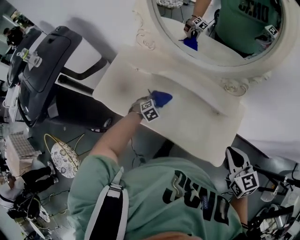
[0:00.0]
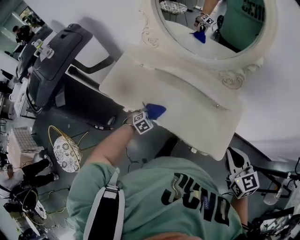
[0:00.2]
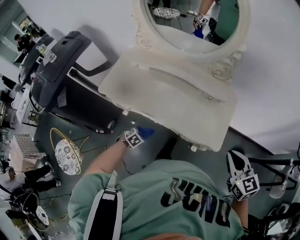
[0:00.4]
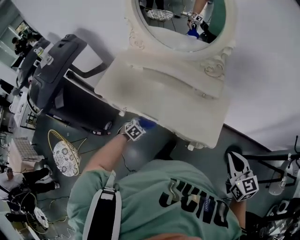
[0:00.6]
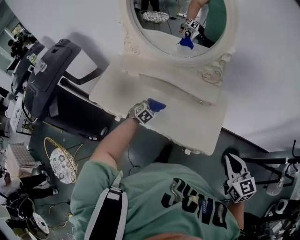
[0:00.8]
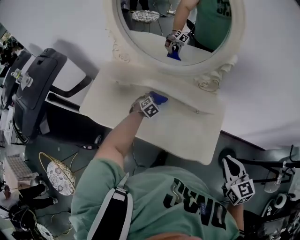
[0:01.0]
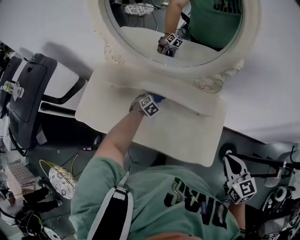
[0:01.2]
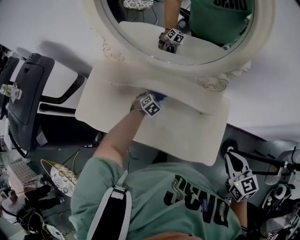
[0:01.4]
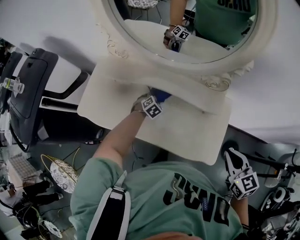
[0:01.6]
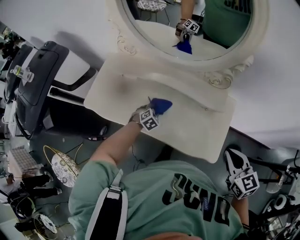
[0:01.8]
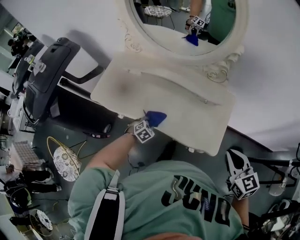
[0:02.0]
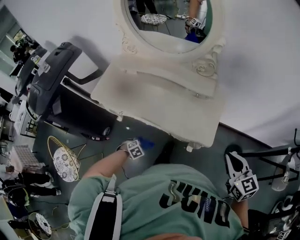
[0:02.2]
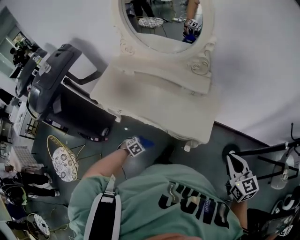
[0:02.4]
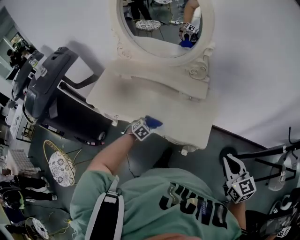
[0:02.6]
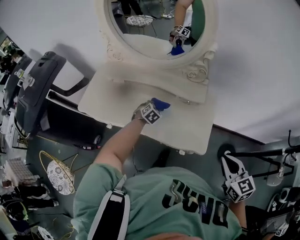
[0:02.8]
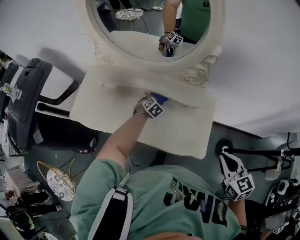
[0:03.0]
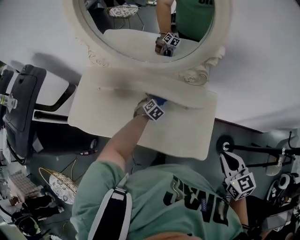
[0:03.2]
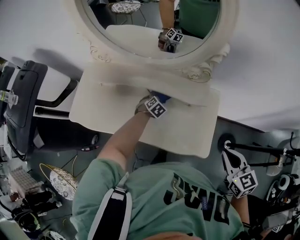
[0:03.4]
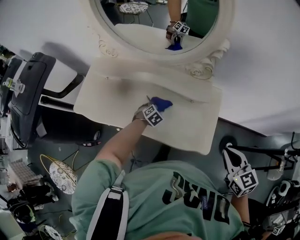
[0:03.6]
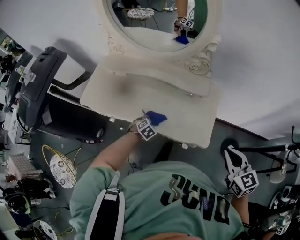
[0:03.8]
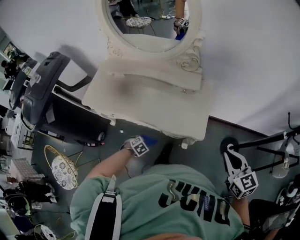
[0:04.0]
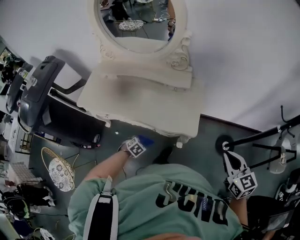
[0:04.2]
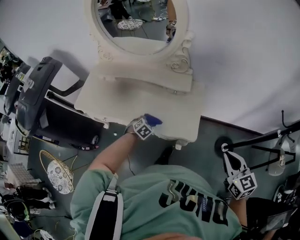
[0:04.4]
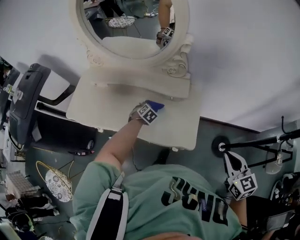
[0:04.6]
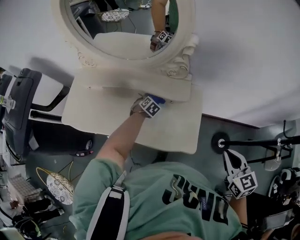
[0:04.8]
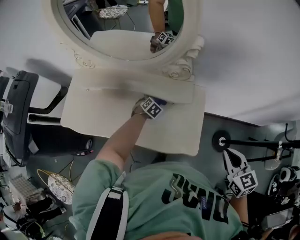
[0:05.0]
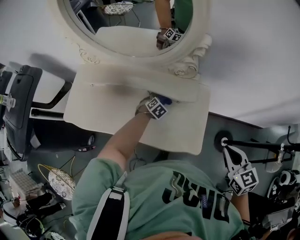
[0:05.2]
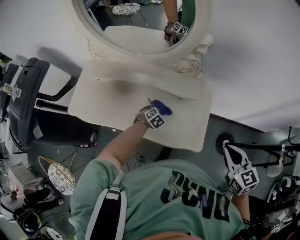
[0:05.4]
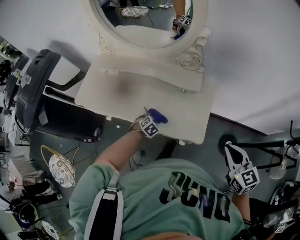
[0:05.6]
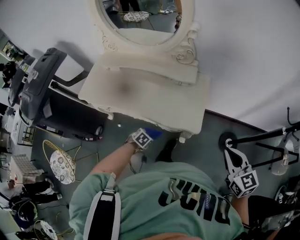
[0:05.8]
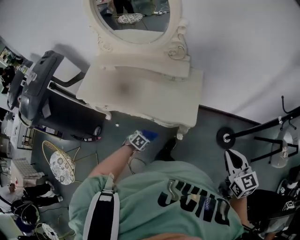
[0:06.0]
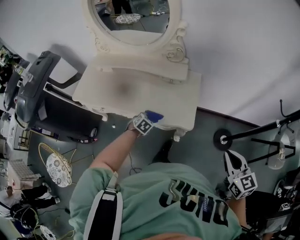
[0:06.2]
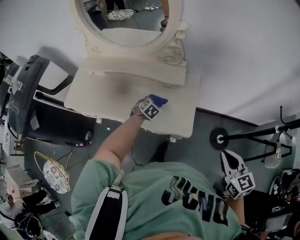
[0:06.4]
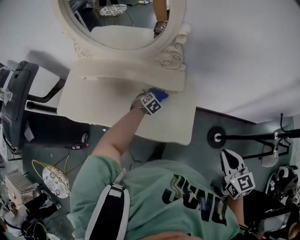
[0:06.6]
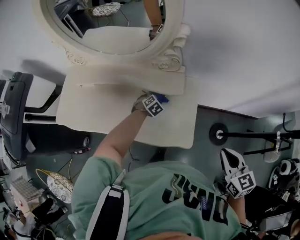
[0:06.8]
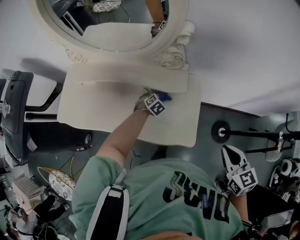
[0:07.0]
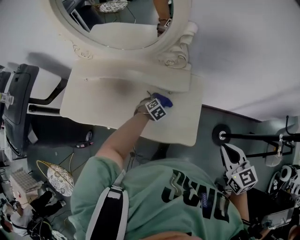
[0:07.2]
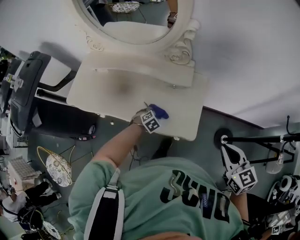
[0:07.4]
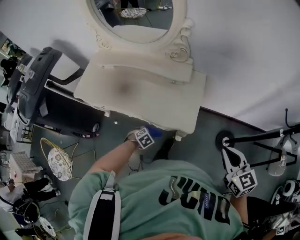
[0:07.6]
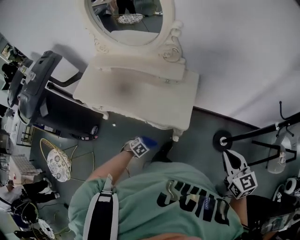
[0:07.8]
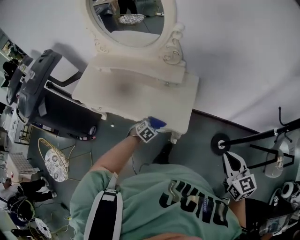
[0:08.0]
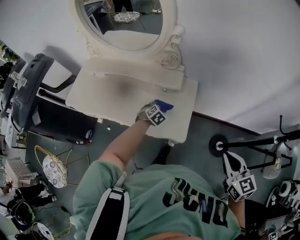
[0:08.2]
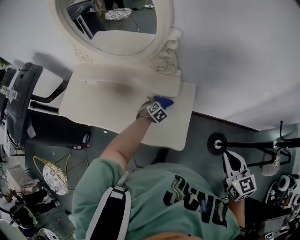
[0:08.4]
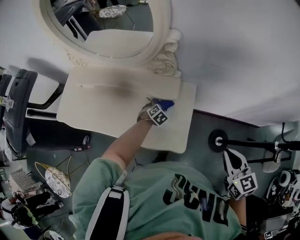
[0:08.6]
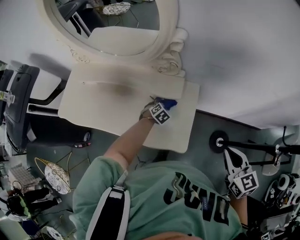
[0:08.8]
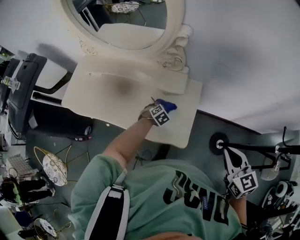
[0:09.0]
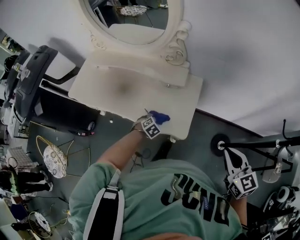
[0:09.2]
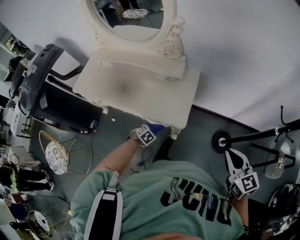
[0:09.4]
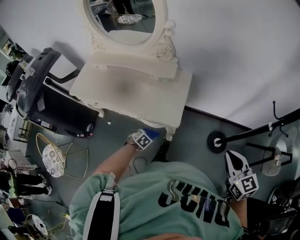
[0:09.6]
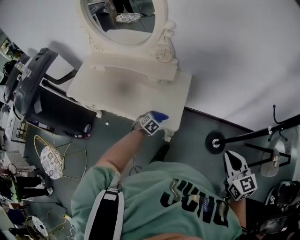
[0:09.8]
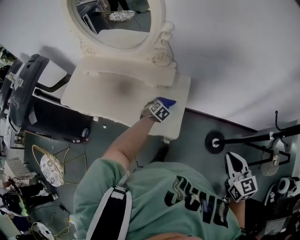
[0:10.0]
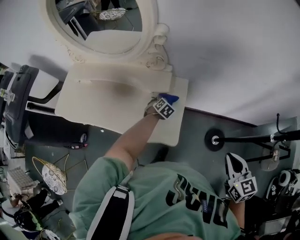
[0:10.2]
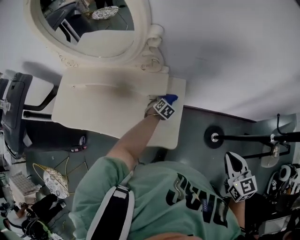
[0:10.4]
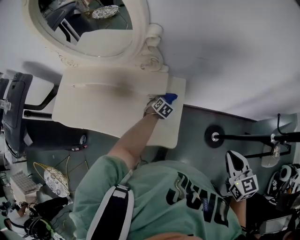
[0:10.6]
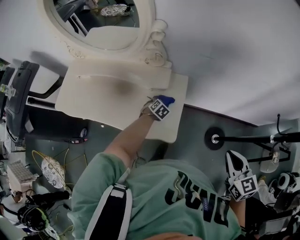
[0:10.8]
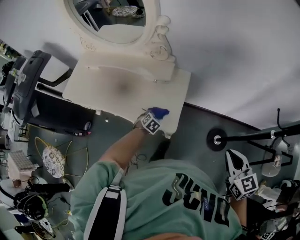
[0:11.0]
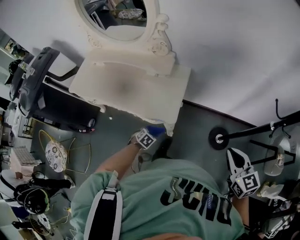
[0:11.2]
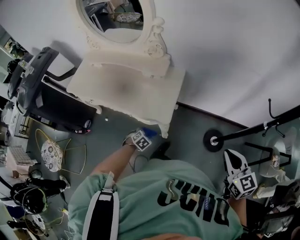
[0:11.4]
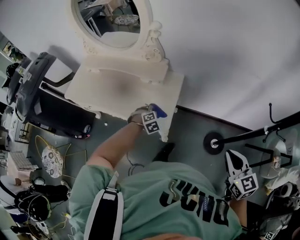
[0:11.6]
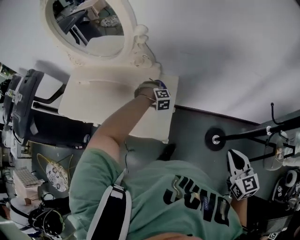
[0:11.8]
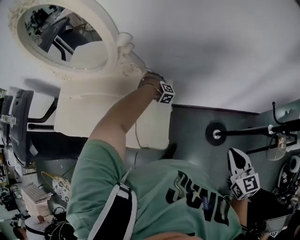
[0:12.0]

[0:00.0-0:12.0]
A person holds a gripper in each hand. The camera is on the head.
0:00.0 to 0:01.6: The left gripper reaches roughly 5 cm upward, then returns.
0:01.6 to 0:03.0: The left gripper goes upward and returns, about 5 cm each way.
0:03.0 to 0:04.4: The right gripper changes place by some 20 cm.
0:04.4 to 0:06.0: The left gripper moves some 20 cm.
0:07.6 to 0:09.0: The right gripper moves roughly 15 cm, while the left gripper changes place by approximately 30 cm.
0:10.4 to 0:12.0: The left gripper twists about 70 degrees clockwise, seen from behind.

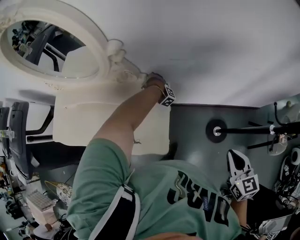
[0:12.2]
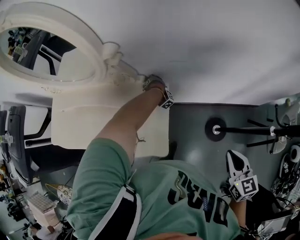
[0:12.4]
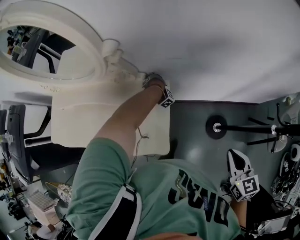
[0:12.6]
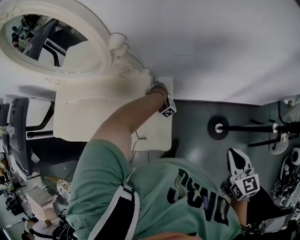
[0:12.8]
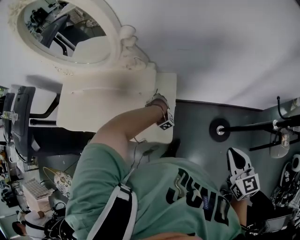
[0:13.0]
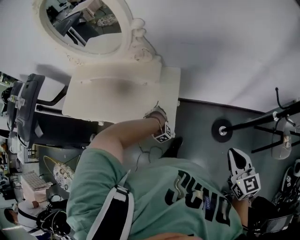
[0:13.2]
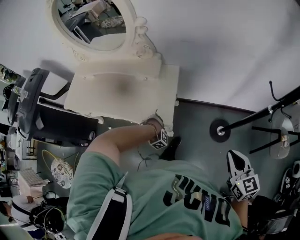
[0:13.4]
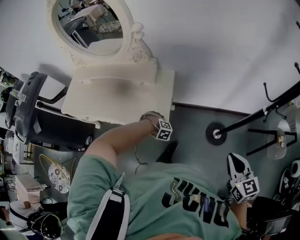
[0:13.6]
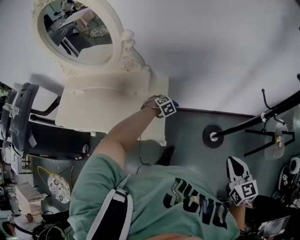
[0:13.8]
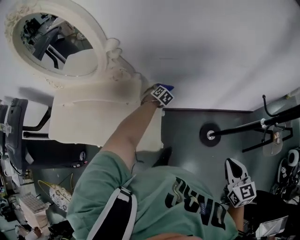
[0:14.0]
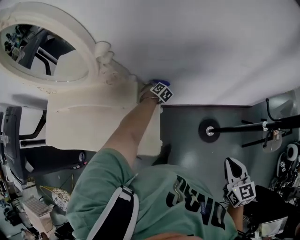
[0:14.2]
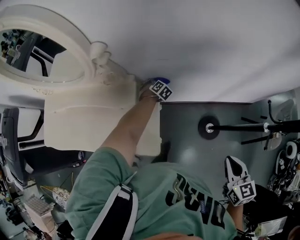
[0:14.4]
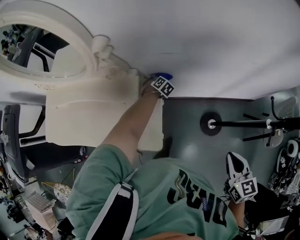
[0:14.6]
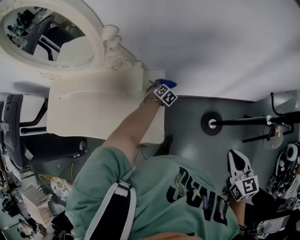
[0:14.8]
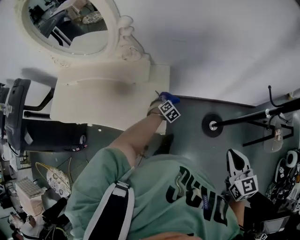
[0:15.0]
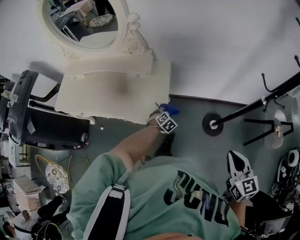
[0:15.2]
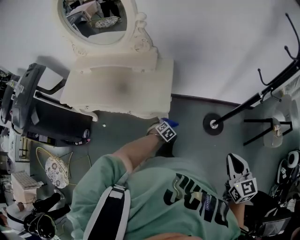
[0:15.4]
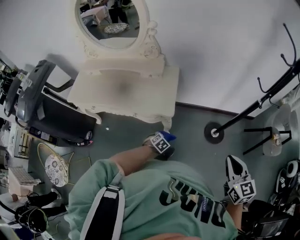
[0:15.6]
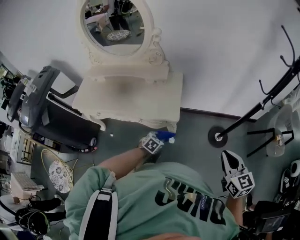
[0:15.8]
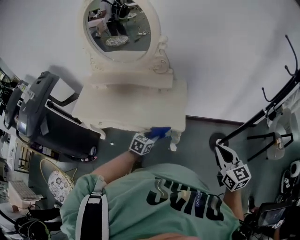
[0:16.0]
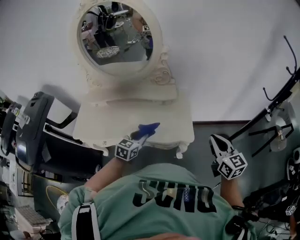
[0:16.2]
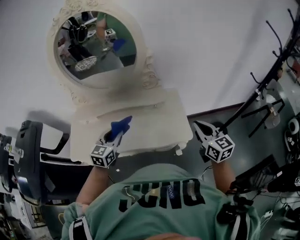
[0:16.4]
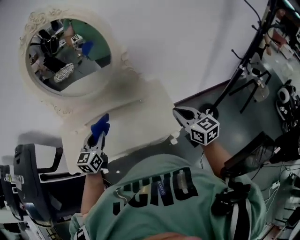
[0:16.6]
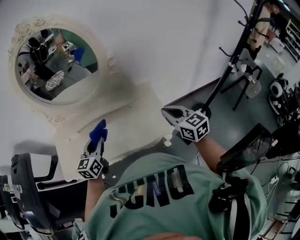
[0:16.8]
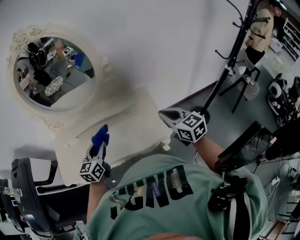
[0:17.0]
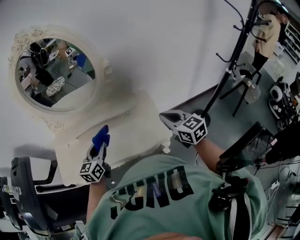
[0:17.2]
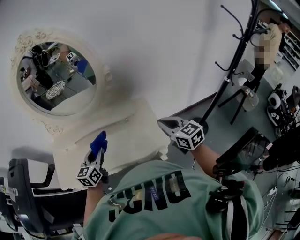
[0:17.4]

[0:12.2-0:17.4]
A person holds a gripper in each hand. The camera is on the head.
0:12.2 to 0:14.0: The left gripper rolls counterclockwise, seen from behind, by about 70 degrees.
0:14.0 to 0:15.6: The right gripper goes about 25 cm backward; the left gripper travels backward by approximately 50 cm.
0:15.6 to 0:17.4: The two grippers travel together, to the left and forward, approximately 50 cm. The left gripper goes some 30 cm upward, and angles its fingers upward, by approximately 50 degrees.

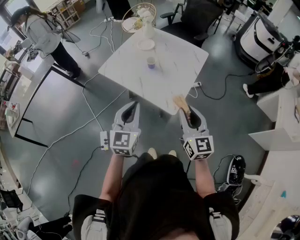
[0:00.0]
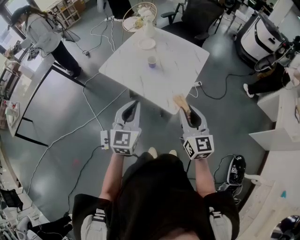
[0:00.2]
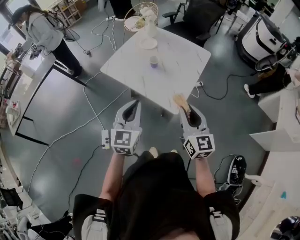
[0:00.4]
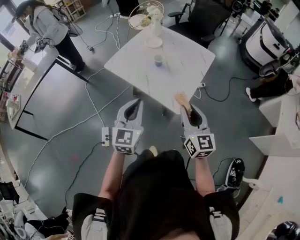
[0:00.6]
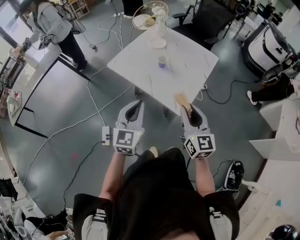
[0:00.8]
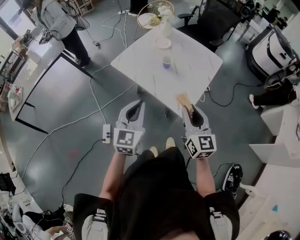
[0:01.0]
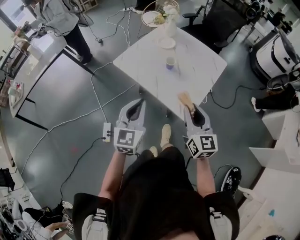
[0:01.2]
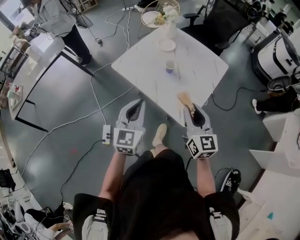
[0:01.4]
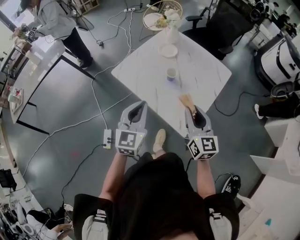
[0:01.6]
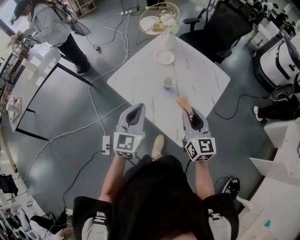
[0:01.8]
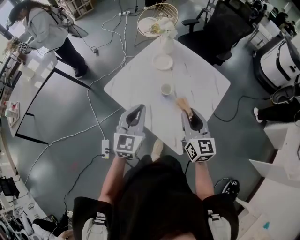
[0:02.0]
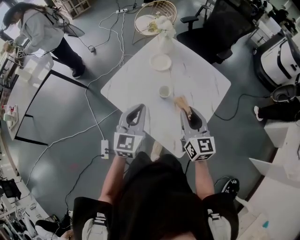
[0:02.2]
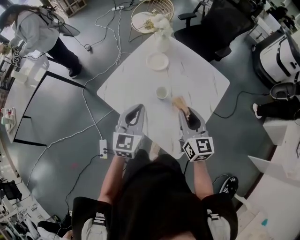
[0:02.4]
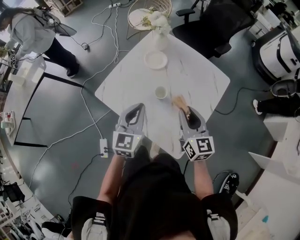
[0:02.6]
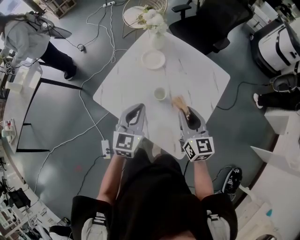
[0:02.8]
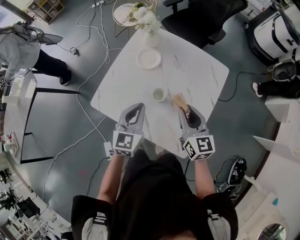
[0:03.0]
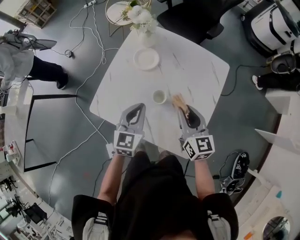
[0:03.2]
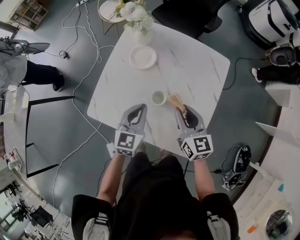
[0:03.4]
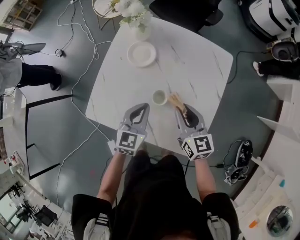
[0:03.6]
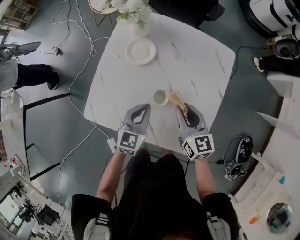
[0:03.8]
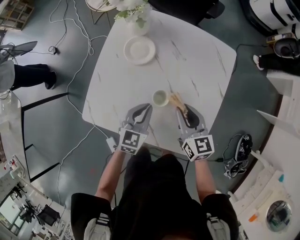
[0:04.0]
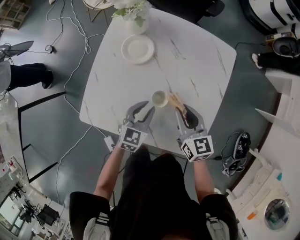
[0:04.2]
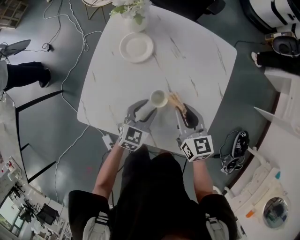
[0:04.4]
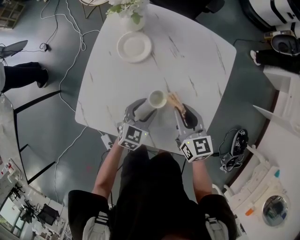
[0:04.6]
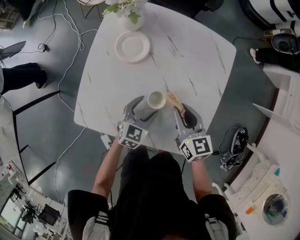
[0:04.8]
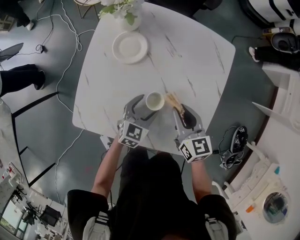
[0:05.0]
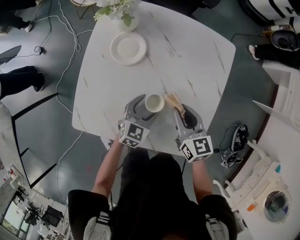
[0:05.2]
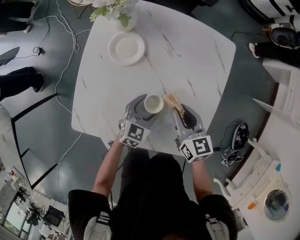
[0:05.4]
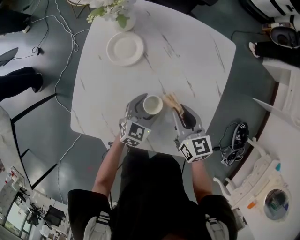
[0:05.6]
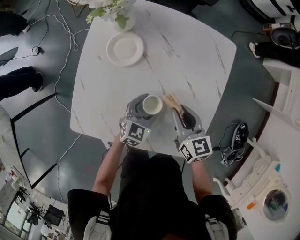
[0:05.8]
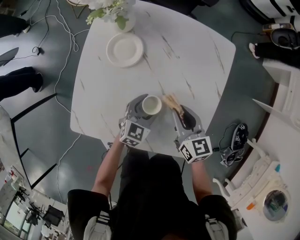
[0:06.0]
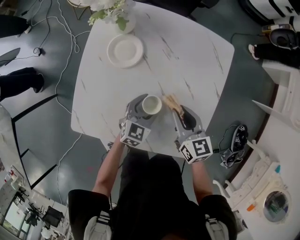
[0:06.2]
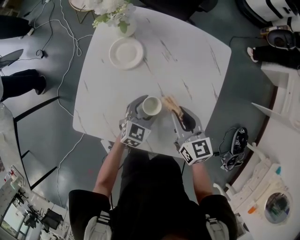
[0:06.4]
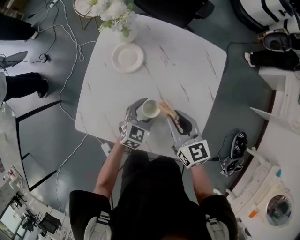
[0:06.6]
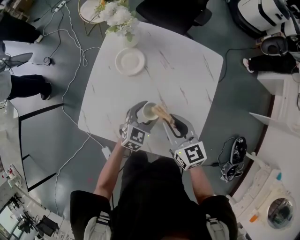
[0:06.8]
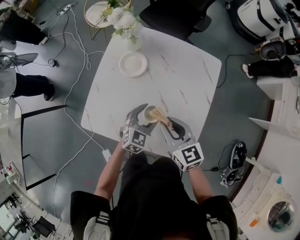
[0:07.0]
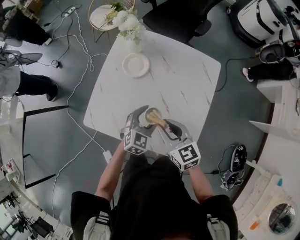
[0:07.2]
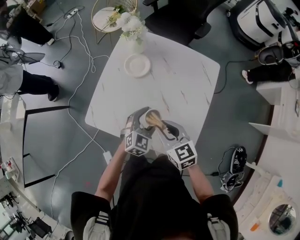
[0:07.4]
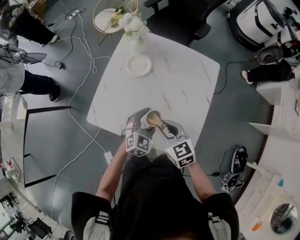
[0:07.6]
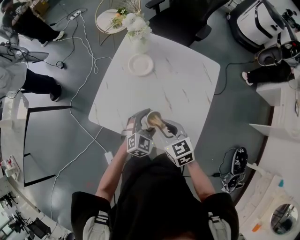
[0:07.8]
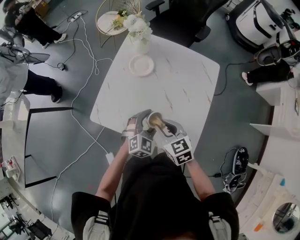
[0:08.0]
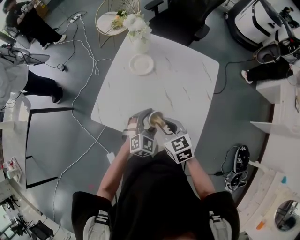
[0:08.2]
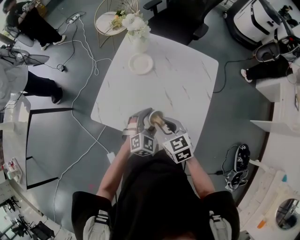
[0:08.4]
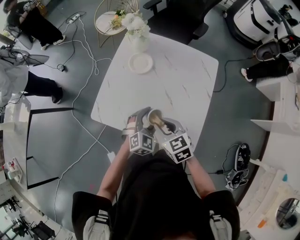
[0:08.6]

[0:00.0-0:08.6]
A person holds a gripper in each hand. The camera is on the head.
0:00.0 to 0:01.4: Both grippers travel together forward and to the left, roughly 10 cm.
0:01.4 to 0:02.8: The two grippers go about 25 cm forward.
0:02.8 to 0:04.4: The right gripper moves downward and forward, approximately 15 cm. Meanwhile the left gripper travels downward by approximately 20 cm, changes its angle by some 30 degrees, and opens up.
0:04.4 to 0:05.8: The left gripper ends up about 5 cm from where it was.
0:05.8 to 0:07.2: The right gripper is displaced upward, backward and to the left by about 15 cm, while the left gripper heads upward, covering roughly 10 cm.
0:07.2 to 0:08.6: Both grippers travel together backward, about 5 cm.
